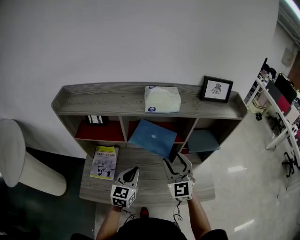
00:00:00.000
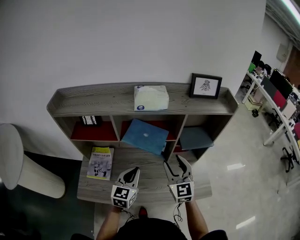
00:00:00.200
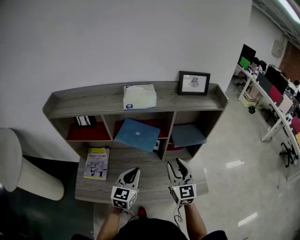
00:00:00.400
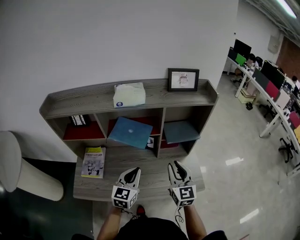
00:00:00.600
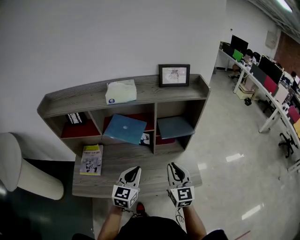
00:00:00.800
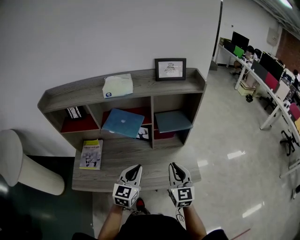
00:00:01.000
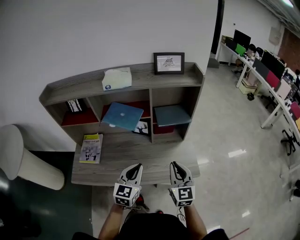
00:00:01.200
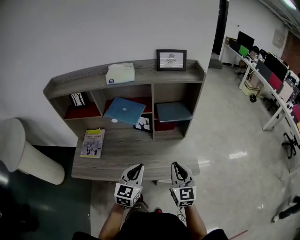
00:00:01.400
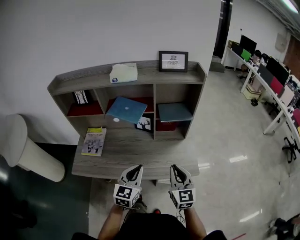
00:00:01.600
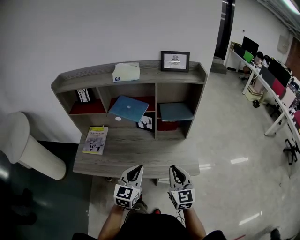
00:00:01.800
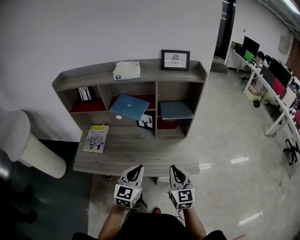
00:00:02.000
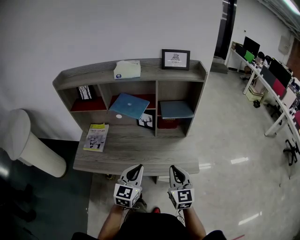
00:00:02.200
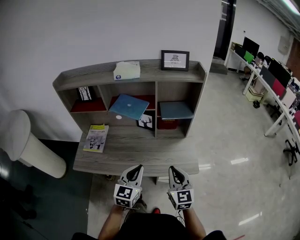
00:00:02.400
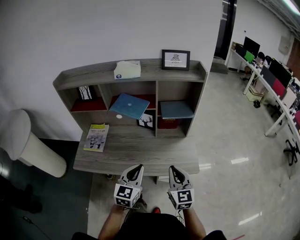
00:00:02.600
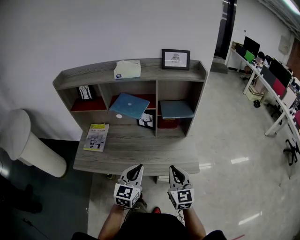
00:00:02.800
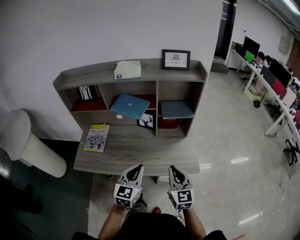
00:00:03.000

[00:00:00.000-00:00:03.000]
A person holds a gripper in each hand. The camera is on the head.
00:00:00.000 to 00:00:01.600: The right gripper is displaced backward and to the right by approximately 30 cm, changes its angle by some 20 degrees, and closes up. The left gripper shifts some 25 cm to the right and backward.
00:00:01.600 to 00:00:03.000: The grippers stay close to where they were, moving slightly.

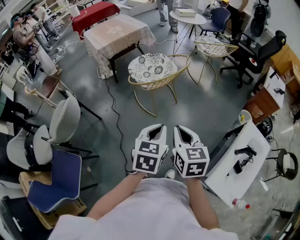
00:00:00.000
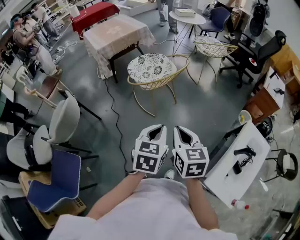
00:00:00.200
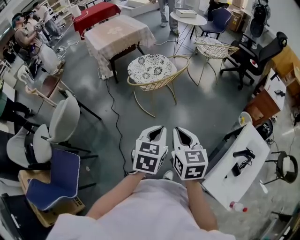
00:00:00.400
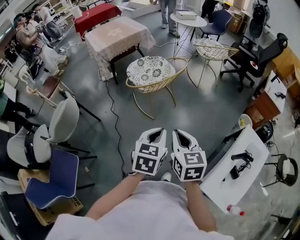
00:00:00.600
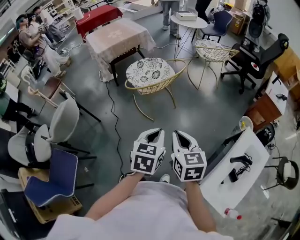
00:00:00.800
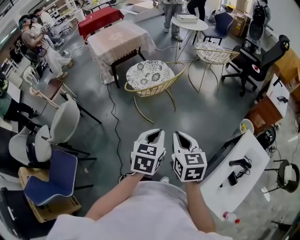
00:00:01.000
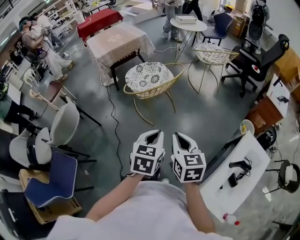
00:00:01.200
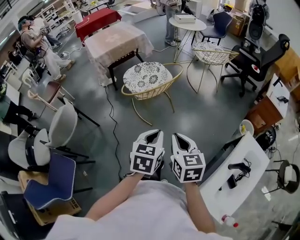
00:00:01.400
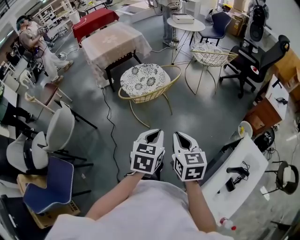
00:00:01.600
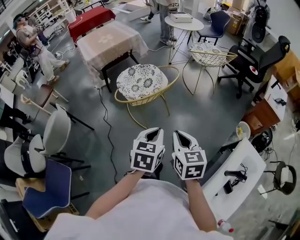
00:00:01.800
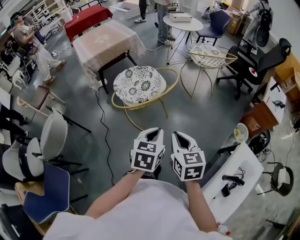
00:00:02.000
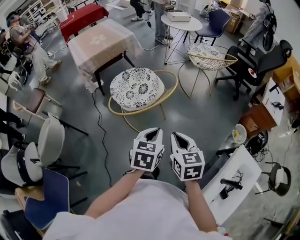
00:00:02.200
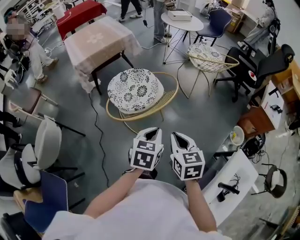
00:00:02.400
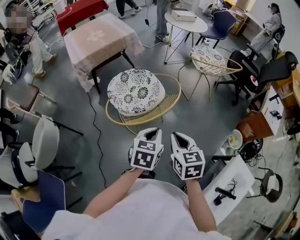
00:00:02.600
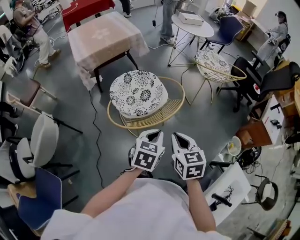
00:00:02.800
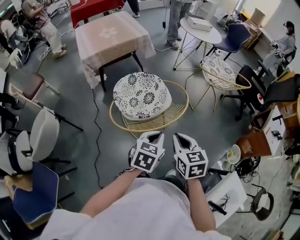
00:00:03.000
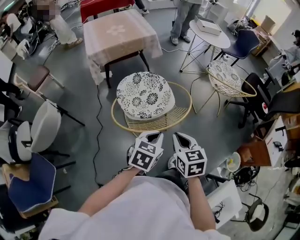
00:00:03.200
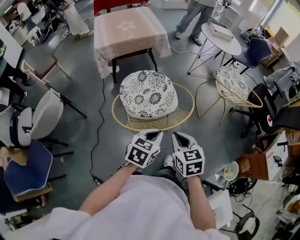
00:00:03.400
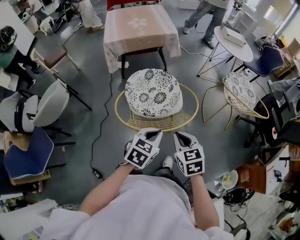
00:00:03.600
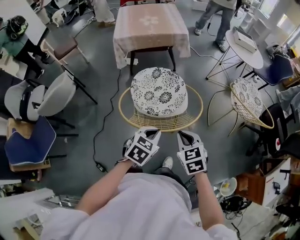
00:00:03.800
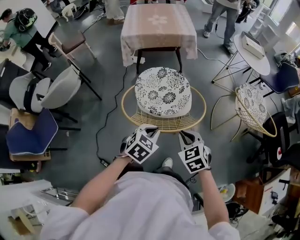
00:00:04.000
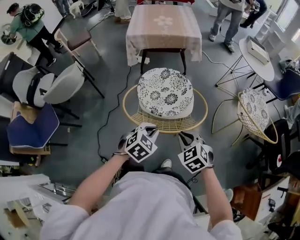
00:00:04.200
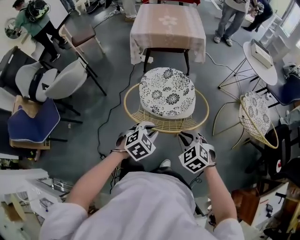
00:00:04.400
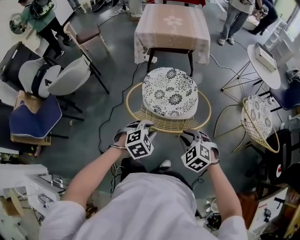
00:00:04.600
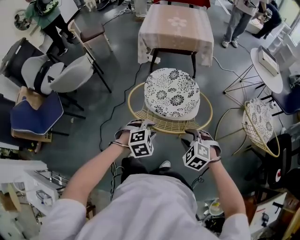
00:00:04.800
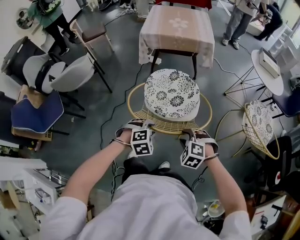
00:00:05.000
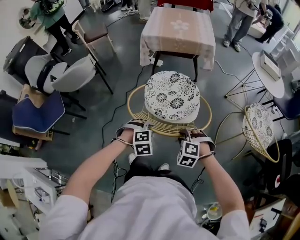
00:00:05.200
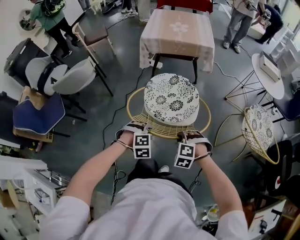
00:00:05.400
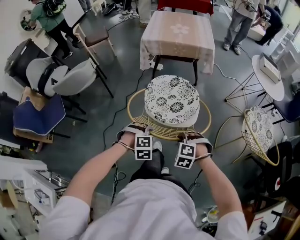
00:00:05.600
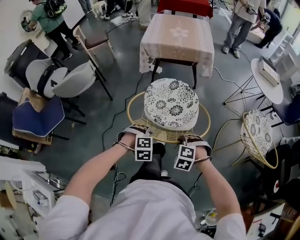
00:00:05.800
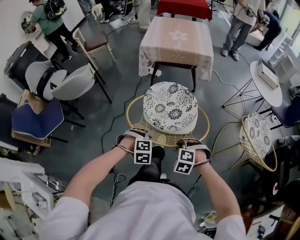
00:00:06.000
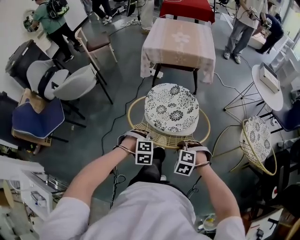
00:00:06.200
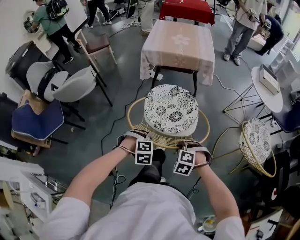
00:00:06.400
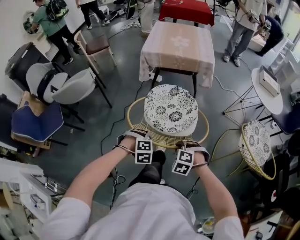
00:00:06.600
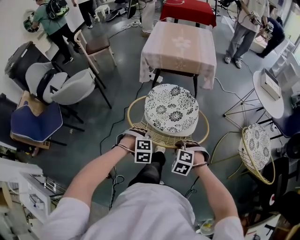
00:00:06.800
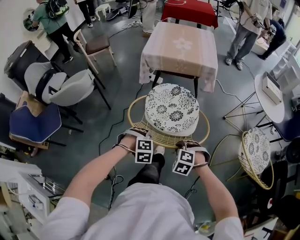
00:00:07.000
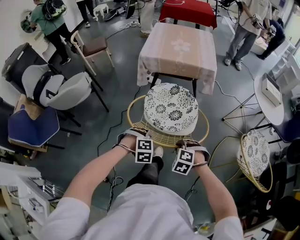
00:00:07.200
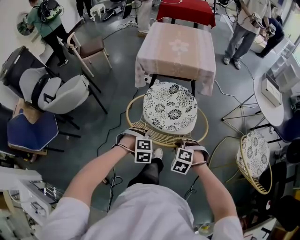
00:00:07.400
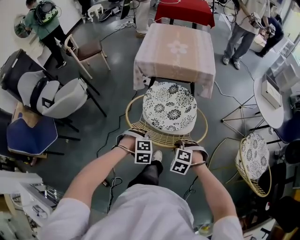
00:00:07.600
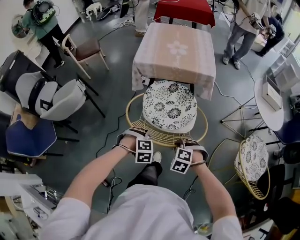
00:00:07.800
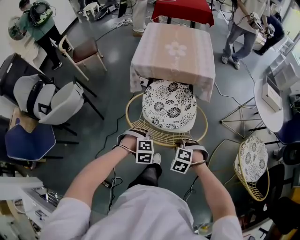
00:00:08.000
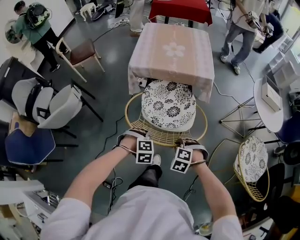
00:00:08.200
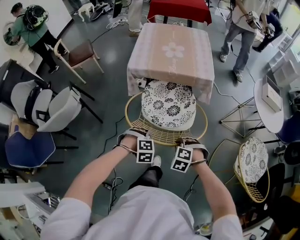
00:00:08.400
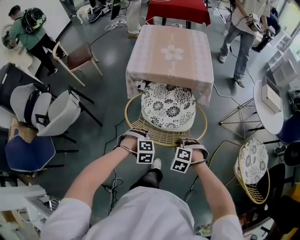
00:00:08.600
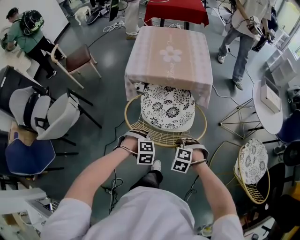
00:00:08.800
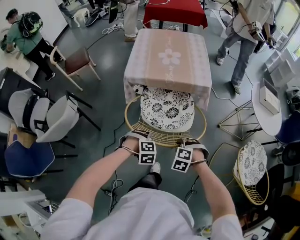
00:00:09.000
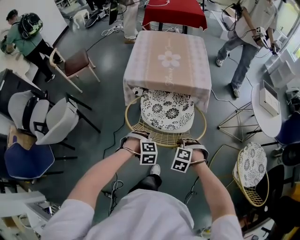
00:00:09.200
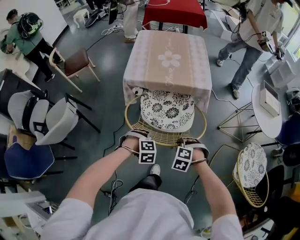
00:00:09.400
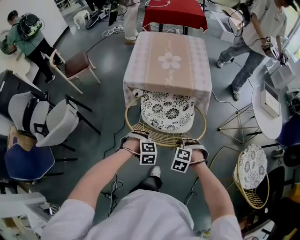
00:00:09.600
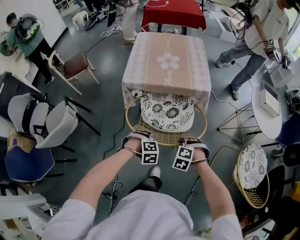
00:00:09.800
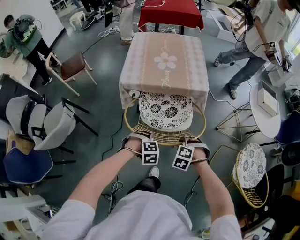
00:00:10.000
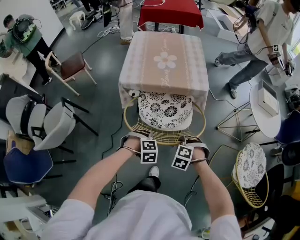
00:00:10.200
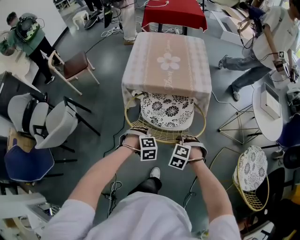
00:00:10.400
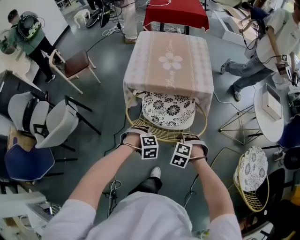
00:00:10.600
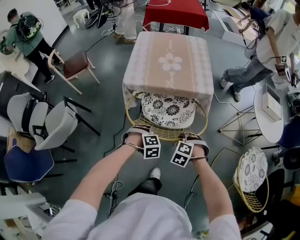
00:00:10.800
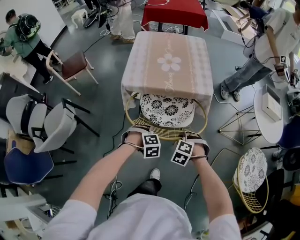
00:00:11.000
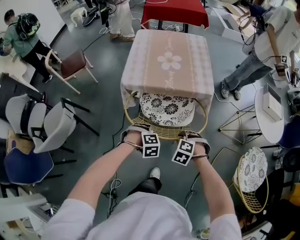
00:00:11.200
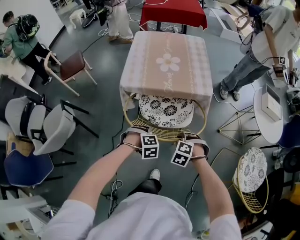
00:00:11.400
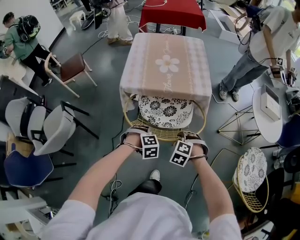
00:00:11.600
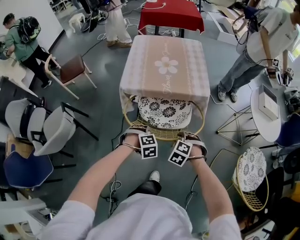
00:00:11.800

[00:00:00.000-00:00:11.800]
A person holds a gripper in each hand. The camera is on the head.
00:00:00.000 to 00:00:01.400: The left gripper shifts some 10 cm to the right and forward. Meanwhile the right gripper goes approximately 10 cm to the right.
00:00:01.400 to 00:00:03.000: The two grippers go some 30 cm forward.
00:00:03.000 to 00:00:04.400: The right gripper moves roughly 15 cm, and rotates around the line of its fingers by some 60 degrees, counterclockwise from behind. The left gripper travels downward by about 10 cm, and swivels about 30 degrees.
00:00:04.400 to 00:00:06.000: The two grippers go approximately 5 cm downward. The left gripper rotates about 40 degrees, while the right gripper turns by some 40 degrees, and opens, then closes again.
00:00:06.000 to 00:00:07.400: Both grippers travel together forward, some 15 cm.
00:00:07.400 to 00:00:08.800: The right gripper ends up roughly 15 cm from where it was. The left gripper changes place by approximately 15 cm.
00:00:08.800 to 00:00:10.400: The right gripper moves roughly 10 cm. Meanwhile the left gripper changes place by some 10 cm.
00:00:10.400 to 00:00:11.800: The grippers make only small movements.

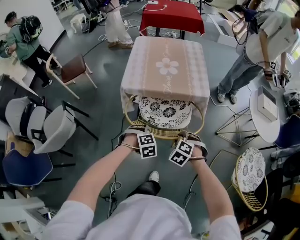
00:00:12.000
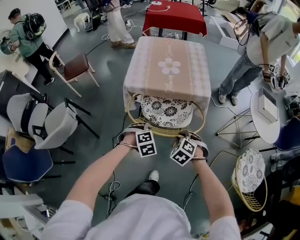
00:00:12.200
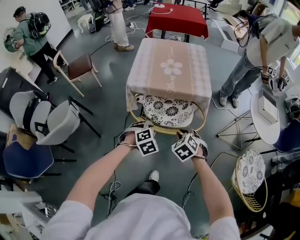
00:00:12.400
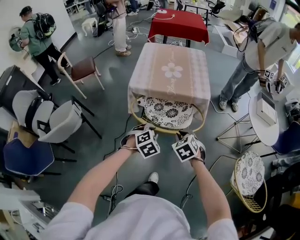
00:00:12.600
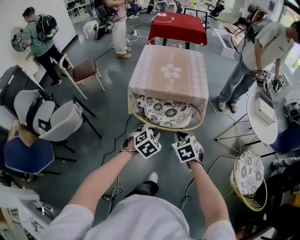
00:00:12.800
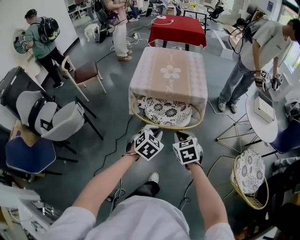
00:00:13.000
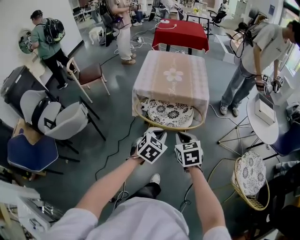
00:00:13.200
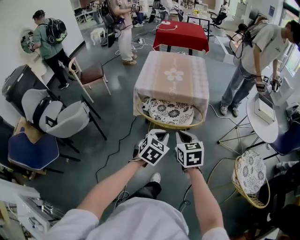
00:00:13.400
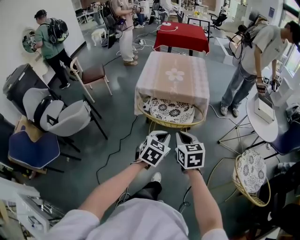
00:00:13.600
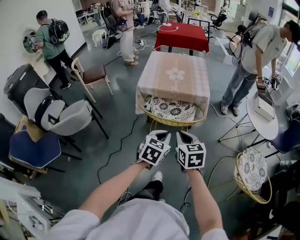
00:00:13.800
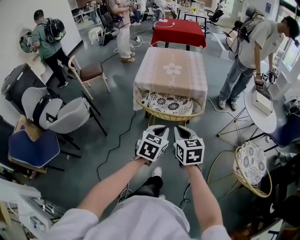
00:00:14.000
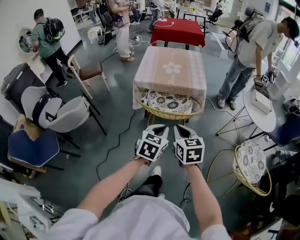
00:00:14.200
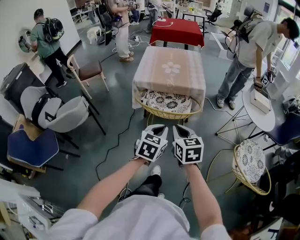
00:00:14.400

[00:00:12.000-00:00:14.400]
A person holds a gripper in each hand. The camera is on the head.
00:00:12.000 to 00:00:13.200: The right gripper travels upward and backward by approximately 15 cm, rotates around the line of its fingers by about 40 degrees, clockwise from behind, and closes its fingers. The left gripper goes some 20 cm upward, backward and to the right, and points its fingers some 30 degrees further upward.
00:00:13.200 to 00:00:14.400: The two grippers go about 10 cm backward.

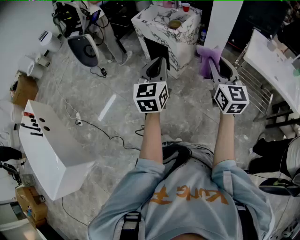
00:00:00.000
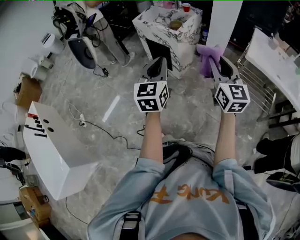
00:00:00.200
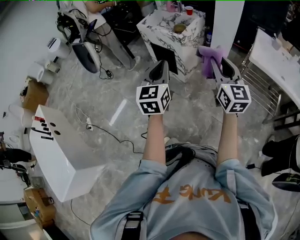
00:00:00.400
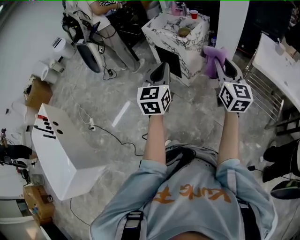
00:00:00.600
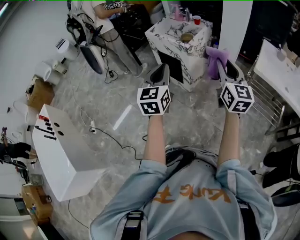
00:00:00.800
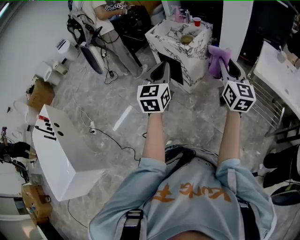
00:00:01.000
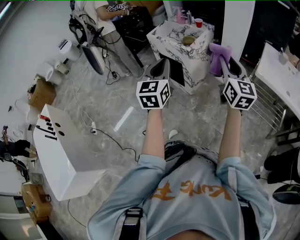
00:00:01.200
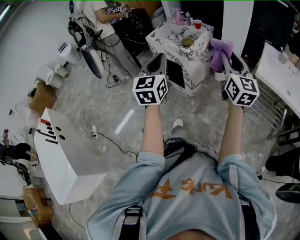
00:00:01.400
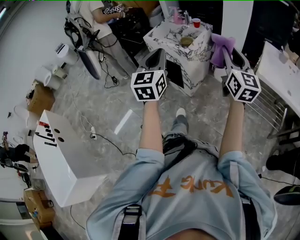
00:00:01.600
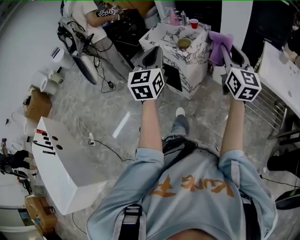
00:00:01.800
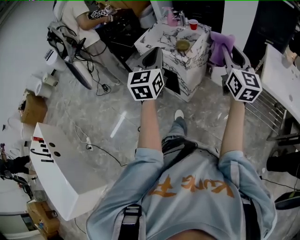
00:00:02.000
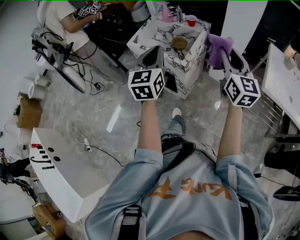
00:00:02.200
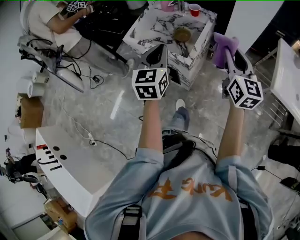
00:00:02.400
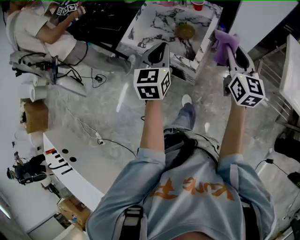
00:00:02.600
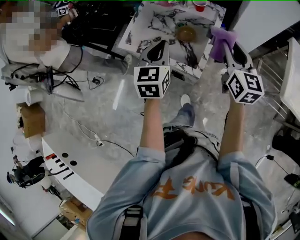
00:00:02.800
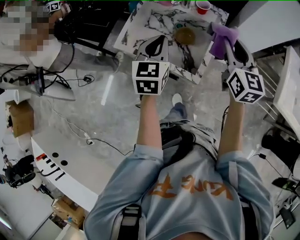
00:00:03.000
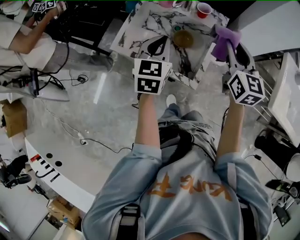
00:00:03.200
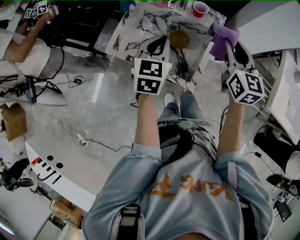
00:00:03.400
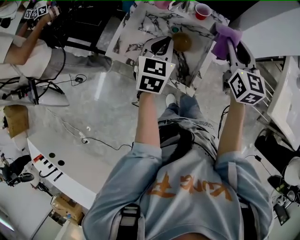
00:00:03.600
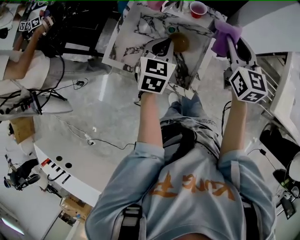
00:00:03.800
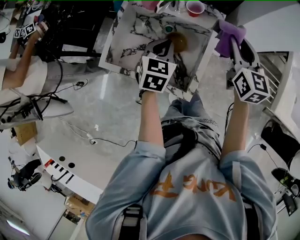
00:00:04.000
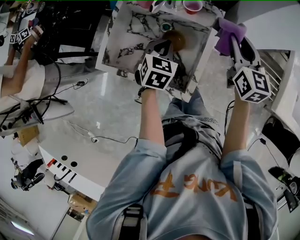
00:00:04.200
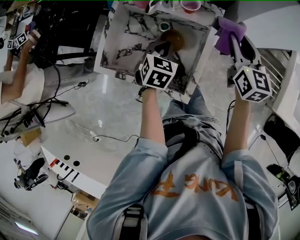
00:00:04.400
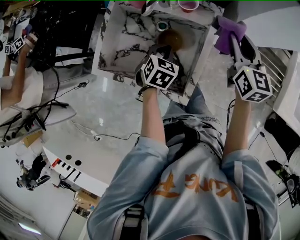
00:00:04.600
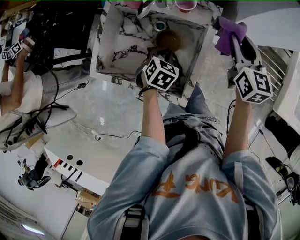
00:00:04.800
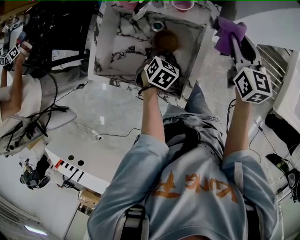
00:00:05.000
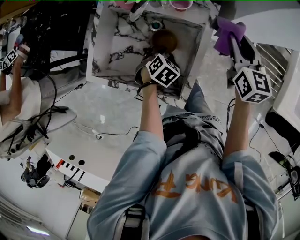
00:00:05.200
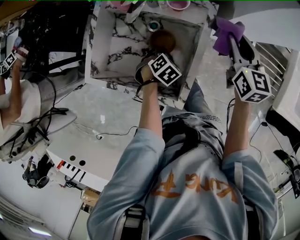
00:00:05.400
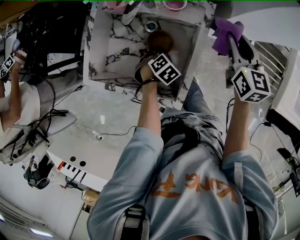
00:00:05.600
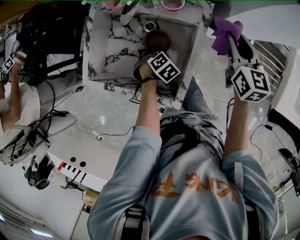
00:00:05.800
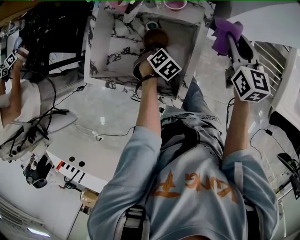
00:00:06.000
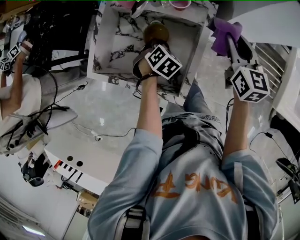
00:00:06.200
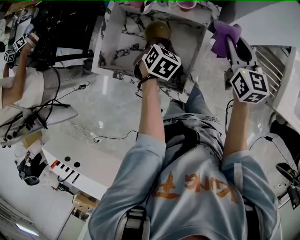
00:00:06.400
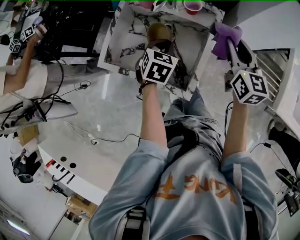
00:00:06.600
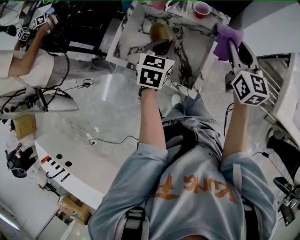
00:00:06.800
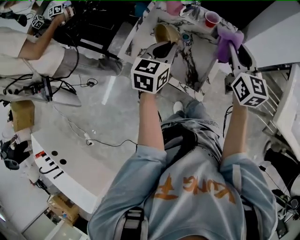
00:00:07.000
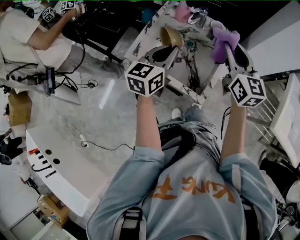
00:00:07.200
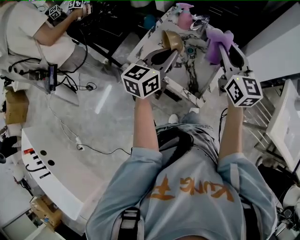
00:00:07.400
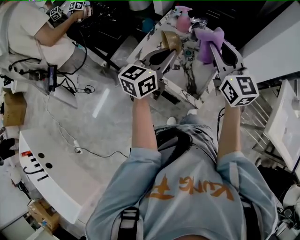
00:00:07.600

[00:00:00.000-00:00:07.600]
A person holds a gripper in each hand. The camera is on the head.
00:00:00.000 to 00:00:01.600: The two grippers go some 15 cm forward and upward.
00:00:01.600 to 00:00:03.000: The pair of grippers is taken forward, some 50 cm. The left gripper changes its angle by roughly 20 degrees.
00:00:03.000 to 00:00:04.600: The left gripper moves downward, forward and to the right, approximately 25 cm, and tilts its fingers about 30 degrees downward. The right gripper moves forward, downward and to the right, about 20 cm.
00:00:04.600 to 00:00:06.000: The left gripper shifts about 10 cm downward, swivels some 30 degrees, and opens and closes again.
00:00:06.000 to 00:00:07.600: The left gripper moves upward, some 35 cm, and tilts its fingers approximately 70 degrees upward, while the right gripper changes place by approximately 30 cm, and rotates roughly 40 degrees.
